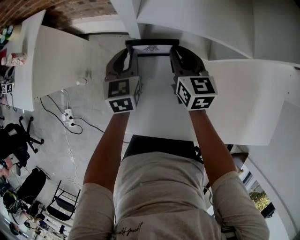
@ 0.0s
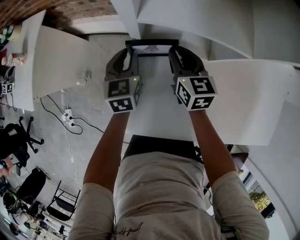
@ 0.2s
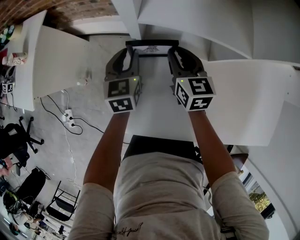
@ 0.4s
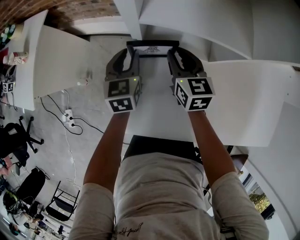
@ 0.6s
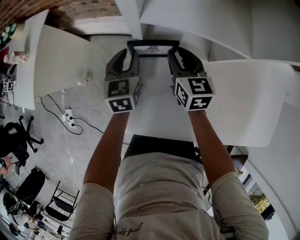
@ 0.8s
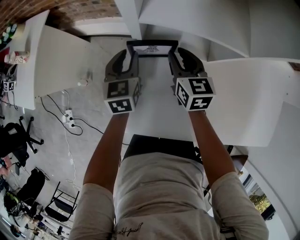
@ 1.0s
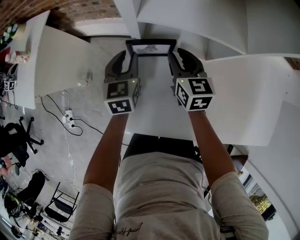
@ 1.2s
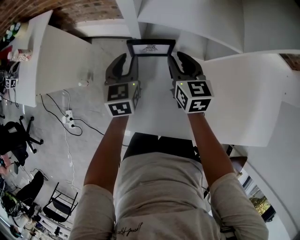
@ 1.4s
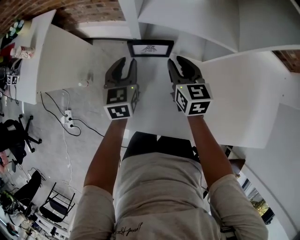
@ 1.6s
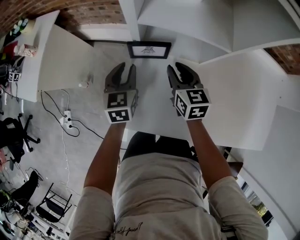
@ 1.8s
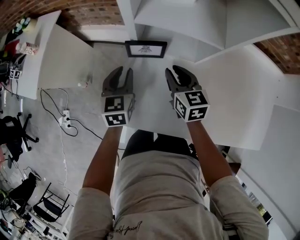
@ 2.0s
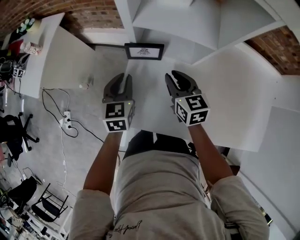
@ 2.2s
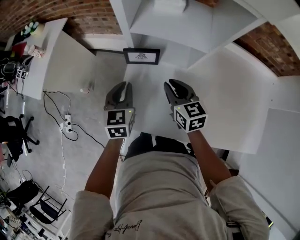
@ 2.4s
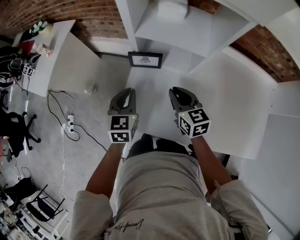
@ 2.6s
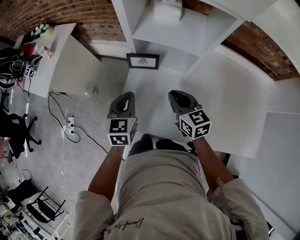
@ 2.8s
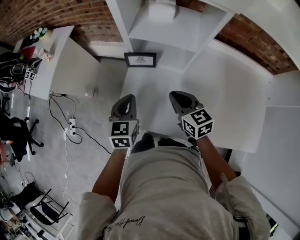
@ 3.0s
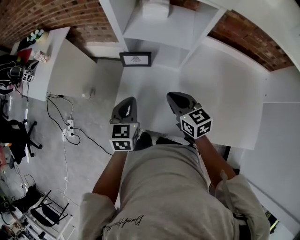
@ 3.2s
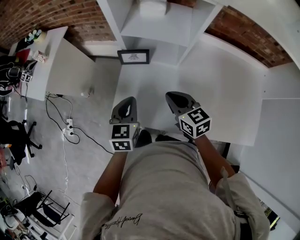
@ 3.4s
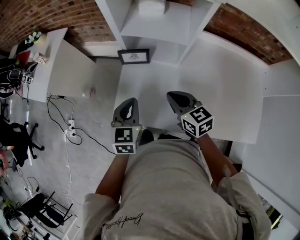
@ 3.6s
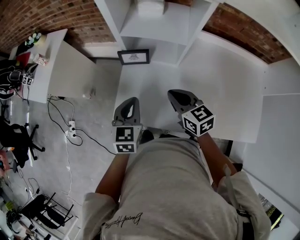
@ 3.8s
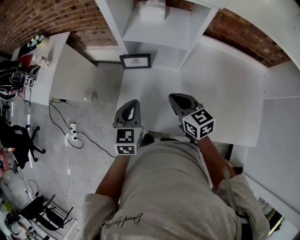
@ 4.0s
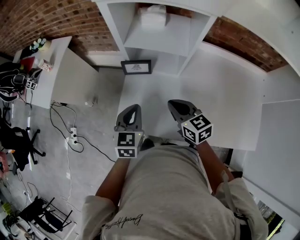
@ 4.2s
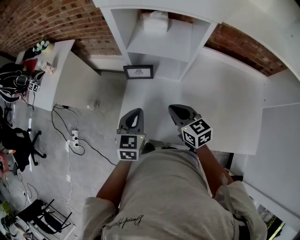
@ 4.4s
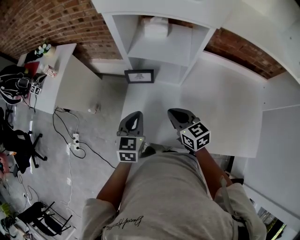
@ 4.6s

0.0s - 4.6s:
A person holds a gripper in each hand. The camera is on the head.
0.0s - 1.6s: The right gripper moves about 5 cm. Meanwhile the left gripper shifts by roughly 5 cm.
1.6s - 3.0s: Both grippers travel together backward and upward, about 20 cm. The left gripper closes up.
3.0s - 4.6s: The grippers stay close to where they were, moving slightly.

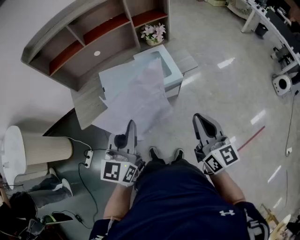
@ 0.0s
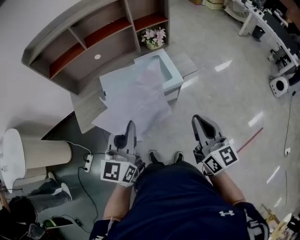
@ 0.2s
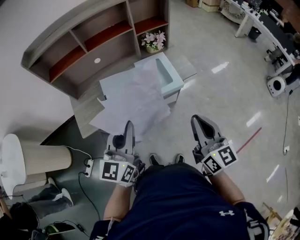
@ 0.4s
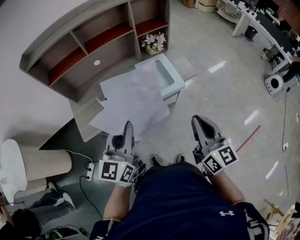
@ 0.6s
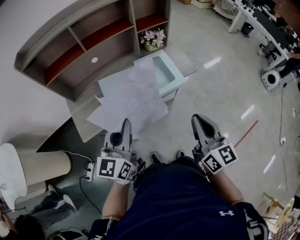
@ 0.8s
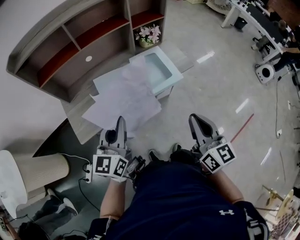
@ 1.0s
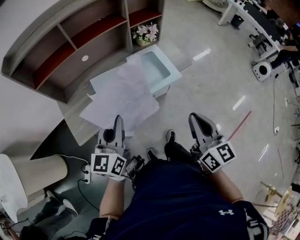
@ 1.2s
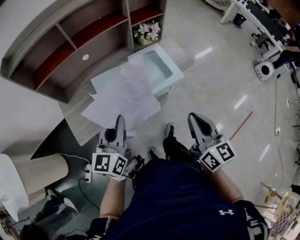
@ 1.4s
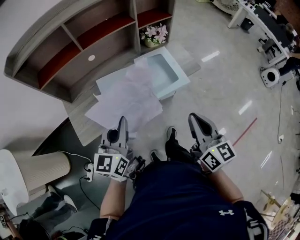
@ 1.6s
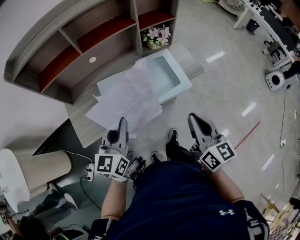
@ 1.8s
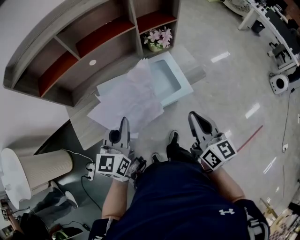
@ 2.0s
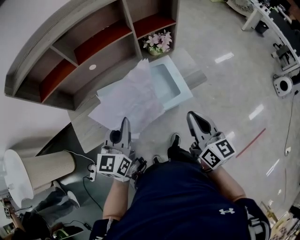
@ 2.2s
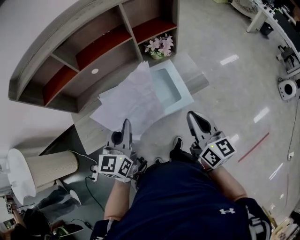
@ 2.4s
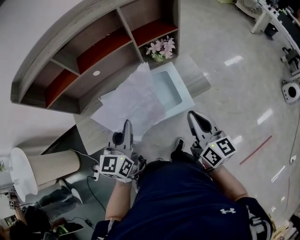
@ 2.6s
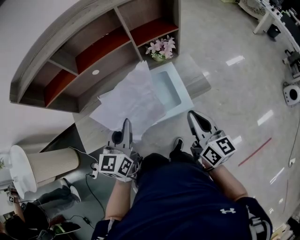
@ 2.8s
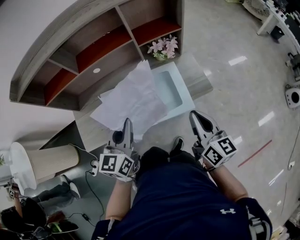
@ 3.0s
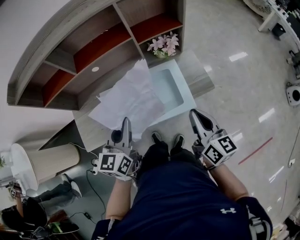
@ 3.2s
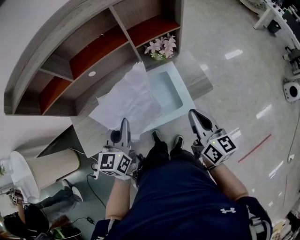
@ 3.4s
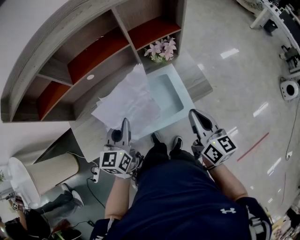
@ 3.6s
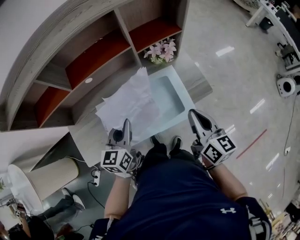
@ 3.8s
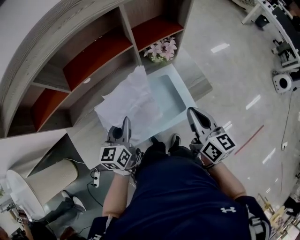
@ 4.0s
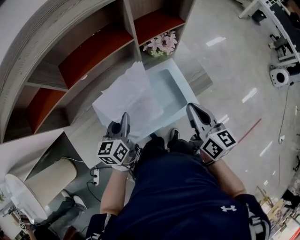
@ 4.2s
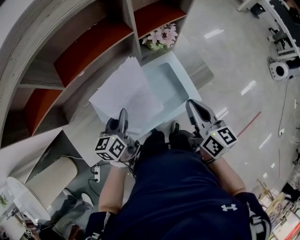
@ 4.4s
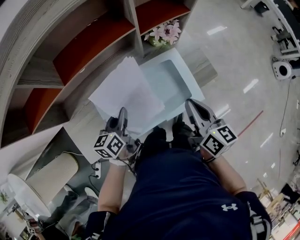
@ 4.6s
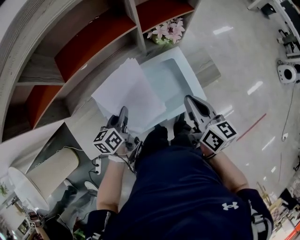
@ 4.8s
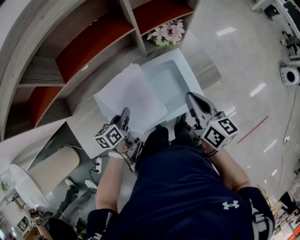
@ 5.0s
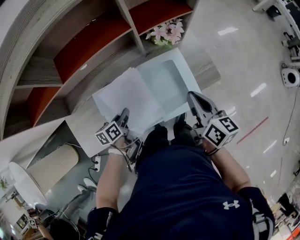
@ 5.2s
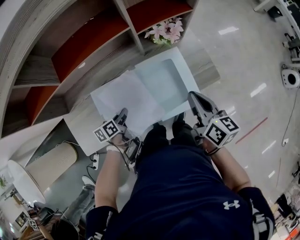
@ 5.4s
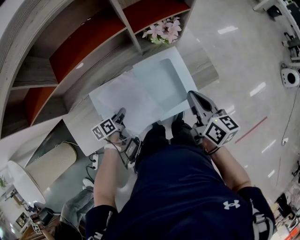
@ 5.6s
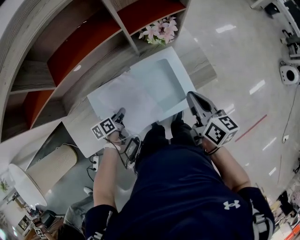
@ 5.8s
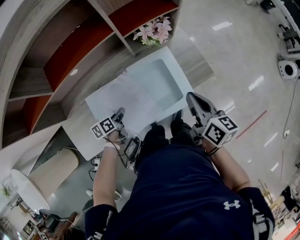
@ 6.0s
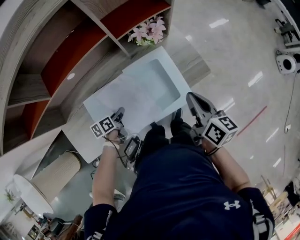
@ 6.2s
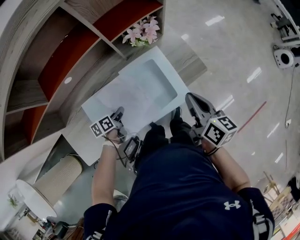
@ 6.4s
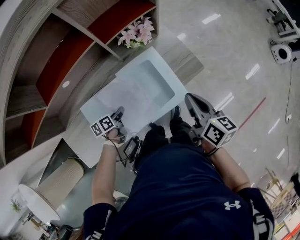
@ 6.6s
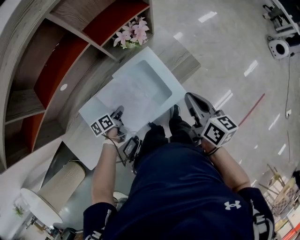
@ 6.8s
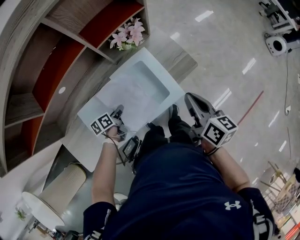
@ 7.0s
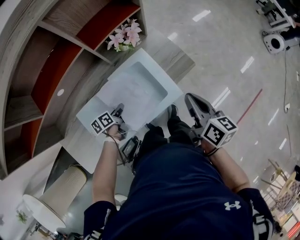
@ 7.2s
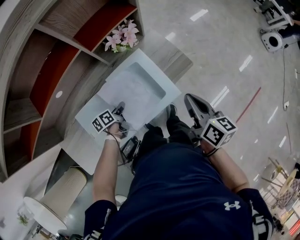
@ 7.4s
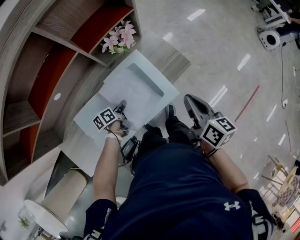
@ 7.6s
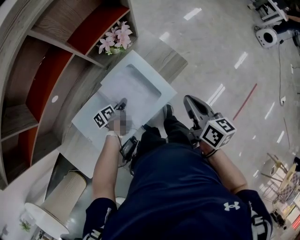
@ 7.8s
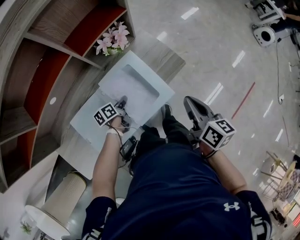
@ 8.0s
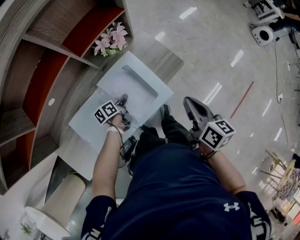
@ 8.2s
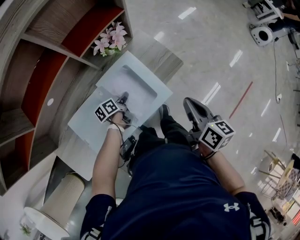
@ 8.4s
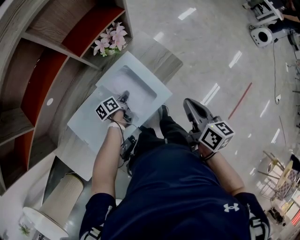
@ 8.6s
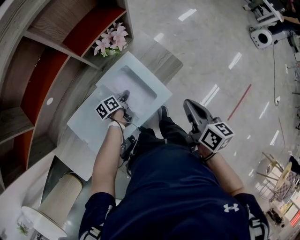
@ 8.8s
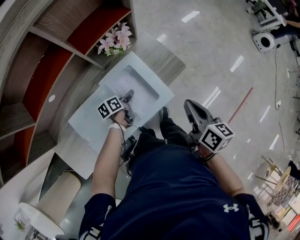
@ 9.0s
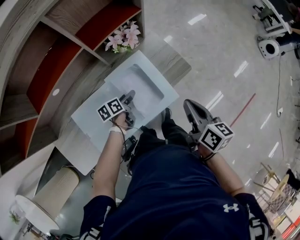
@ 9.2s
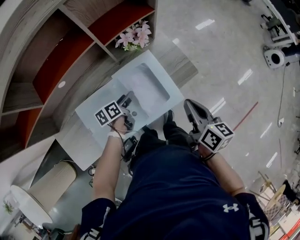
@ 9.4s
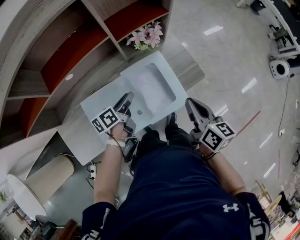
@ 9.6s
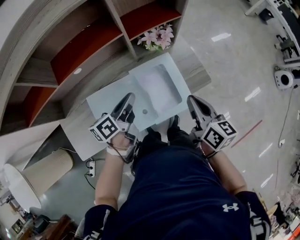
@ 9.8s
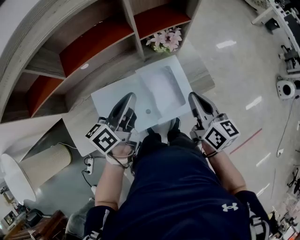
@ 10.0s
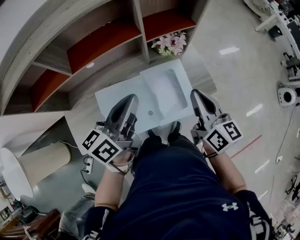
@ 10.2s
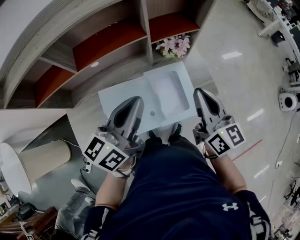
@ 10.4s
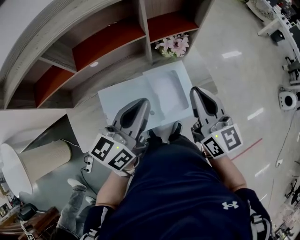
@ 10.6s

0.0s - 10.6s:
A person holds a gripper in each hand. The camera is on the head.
0.0s - 1.6s: The left gripper heads to the left, forward and downward, covering about 20 cm; the right gripper moves to the left and forward, about 15 cm.
1.6s - 3.0s: Both grippers travel together forward and to the right, some 20 cm.
3.0s - 4.6s: The right gripper moves to the left, forward and downward, approximately 15 cm. The left gripper goes approximately 25 cm downward, forward and to the left, and changes its angle by some 30 degrees.
4.6s - 6.0s: The right gripper heads to the right, covering approximately 5 cm, while the left gripper goes some 15 cm downward, and rotates about 30 degrees.
6.0s - 7.6s: The left gripper is displaced to the right and forward by some 15 cm. The right gripper shifts some 10 cm to the right.
7.6s - 9.0s: The left gripper heads to the right and forward, covering roughly 10 cm, and opens its fingers.
9.0s - 10.6s: The right gripper travels upward and to the left by about 20 cm, and turns by approximately 40 degrees, while the left gripper moves upward, about 40 cm, angles its fingers upward, by about 40 degrees, and closes up.

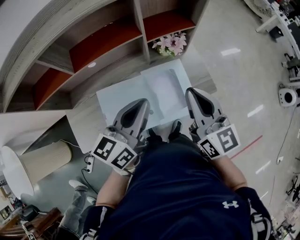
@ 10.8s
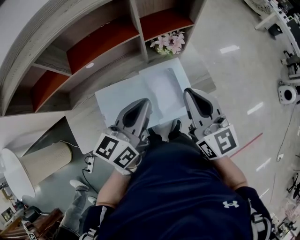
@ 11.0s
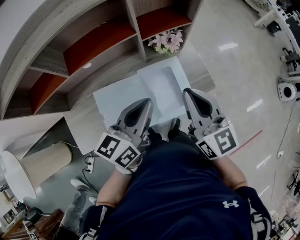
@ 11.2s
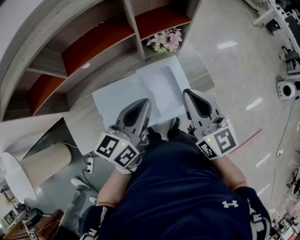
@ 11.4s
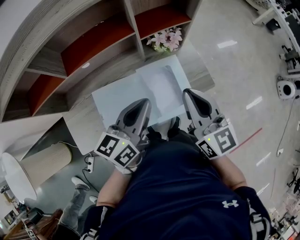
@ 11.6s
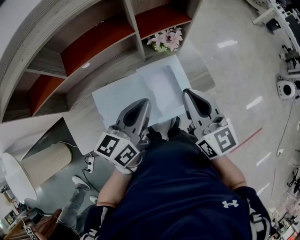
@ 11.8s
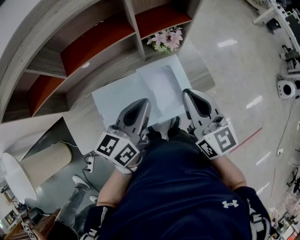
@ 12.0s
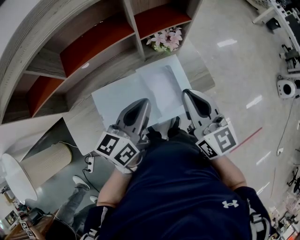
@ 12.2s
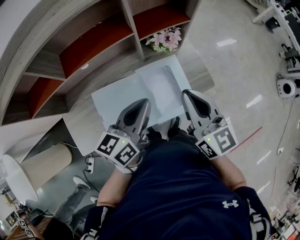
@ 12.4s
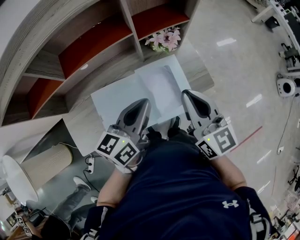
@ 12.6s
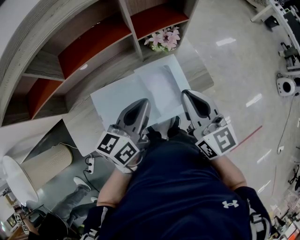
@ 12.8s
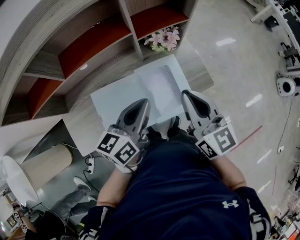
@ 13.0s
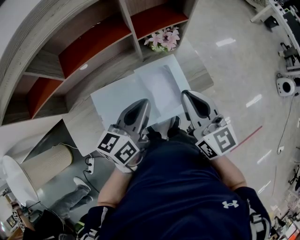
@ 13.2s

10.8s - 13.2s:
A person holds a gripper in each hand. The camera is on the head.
10.8s - 13.2s: There are only small adjustments of the grippers.

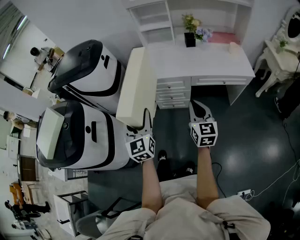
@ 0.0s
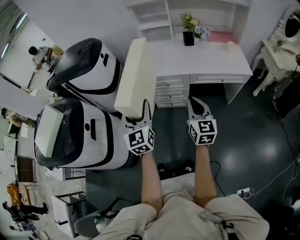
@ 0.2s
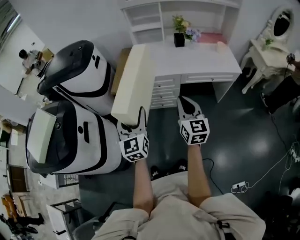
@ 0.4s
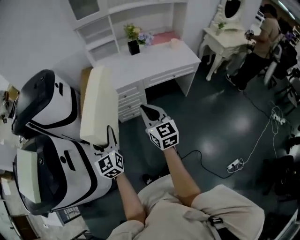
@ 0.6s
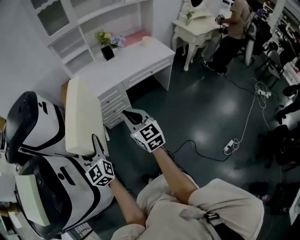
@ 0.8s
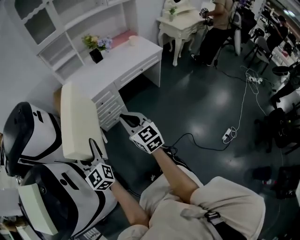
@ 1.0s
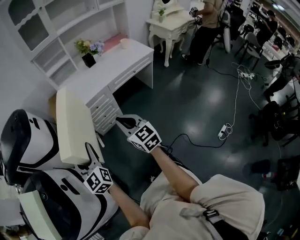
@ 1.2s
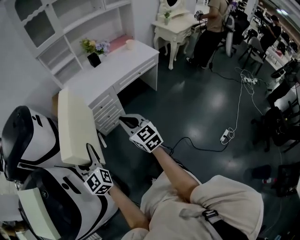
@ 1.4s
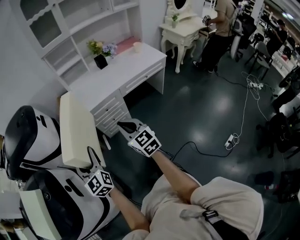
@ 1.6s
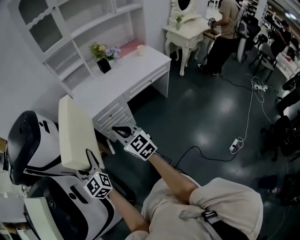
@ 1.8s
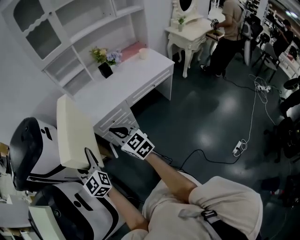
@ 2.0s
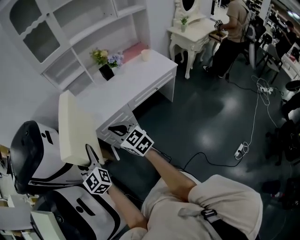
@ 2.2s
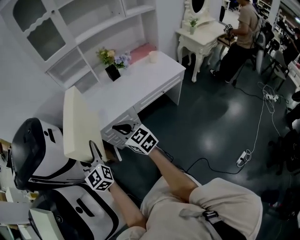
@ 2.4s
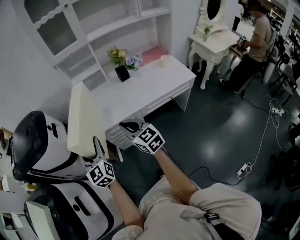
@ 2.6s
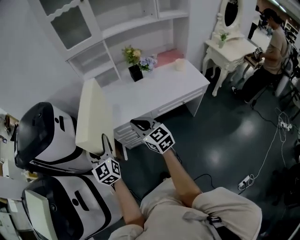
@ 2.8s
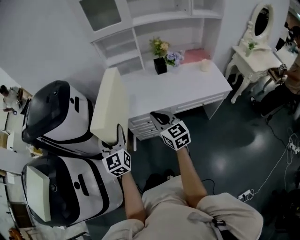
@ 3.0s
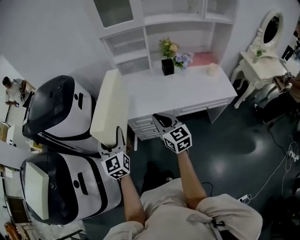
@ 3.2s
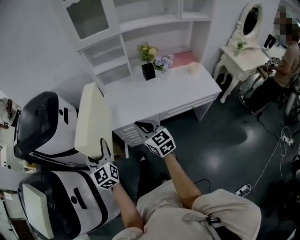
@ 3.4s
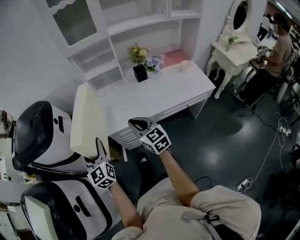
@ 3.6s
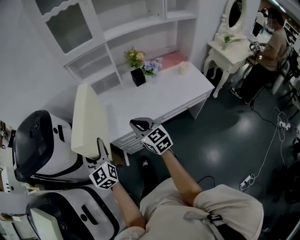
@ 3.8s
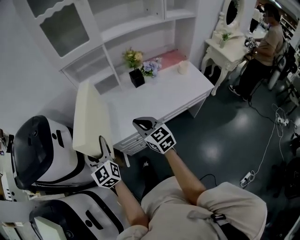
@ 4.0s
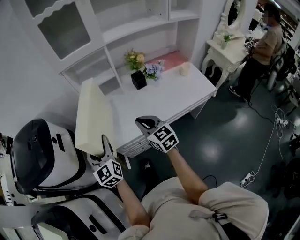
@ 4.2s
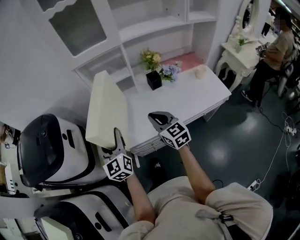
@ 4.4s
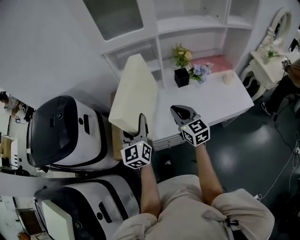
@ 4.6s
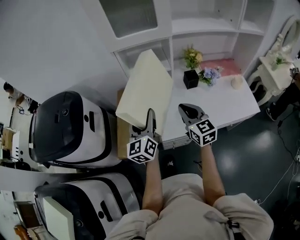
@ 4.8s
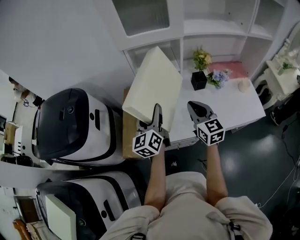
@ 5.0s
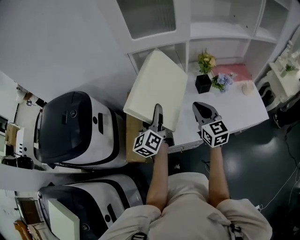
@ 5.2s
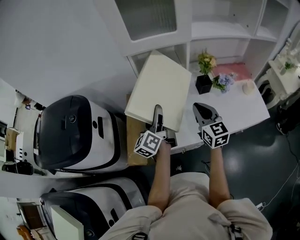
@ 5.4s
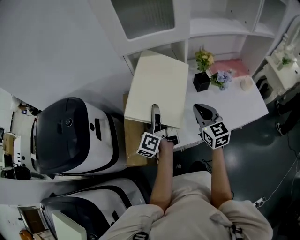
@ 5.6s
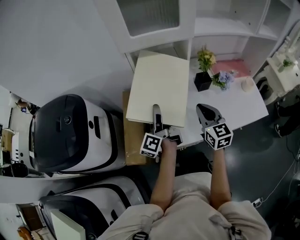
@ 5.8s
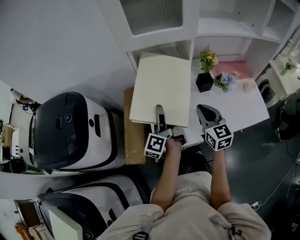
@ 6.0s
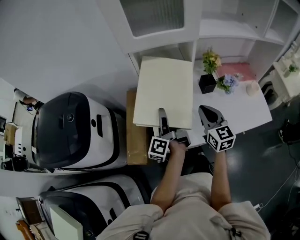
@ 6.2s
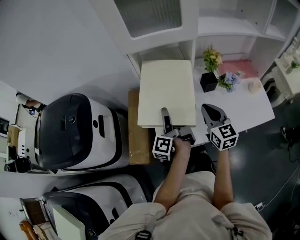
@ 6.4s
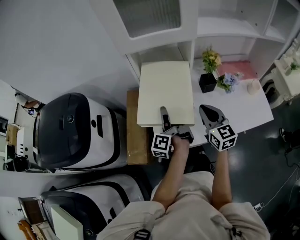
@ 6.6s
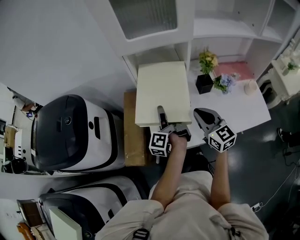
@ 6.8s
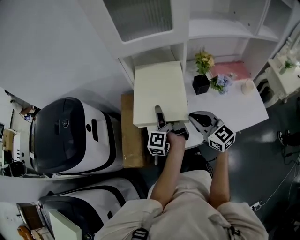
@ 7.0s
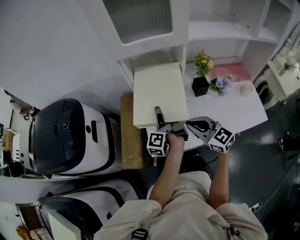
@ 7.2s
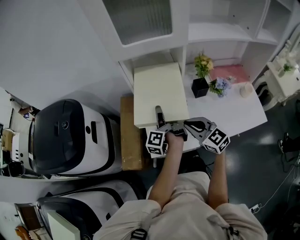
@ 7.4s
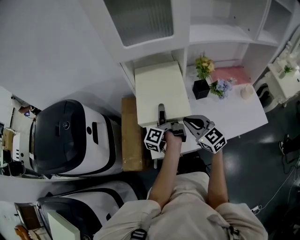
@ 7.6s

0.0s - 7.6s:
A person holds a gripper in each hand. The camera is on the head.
0.0s - 1.6s: The grippers both shift to the left by roughly 15 cm.
1.6s - 3.0s: Both grippers travel together forward and to the right, roughly 25 cm.
3.0s - 4.6s: Both grippers move forward, roughly 25 cm.
4.6s - 6.0s: The right gripper goes some 10 cm forward. The left gripper heads forward and downward, covering some 15 cm, and rolls counterclockwise, seen from behind, by roughly 60 degrees.
6.0s - 7.6s: The right gripper rotates roughly 20 degrees; the left gripper goes roughly 5 cm to the right.
